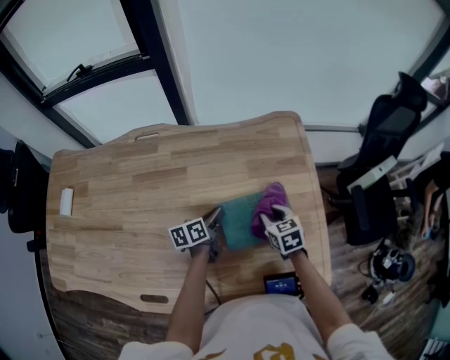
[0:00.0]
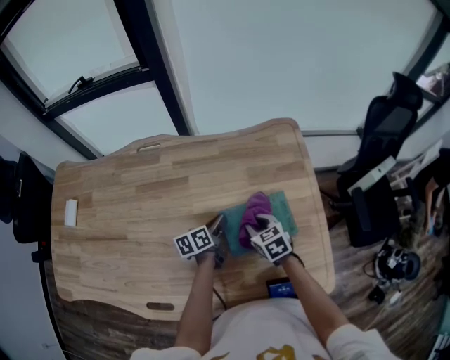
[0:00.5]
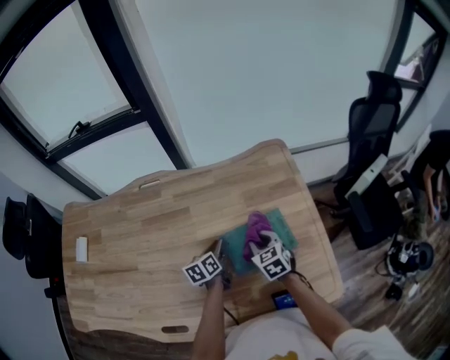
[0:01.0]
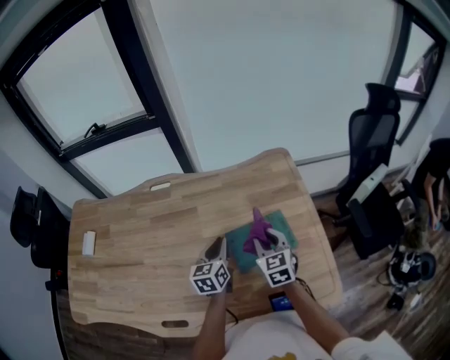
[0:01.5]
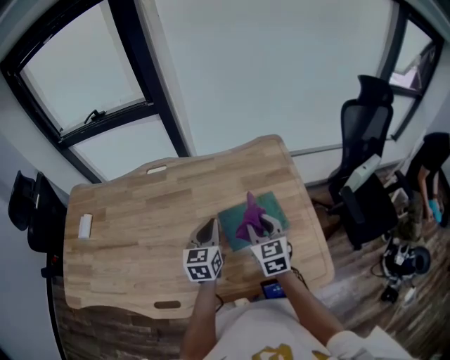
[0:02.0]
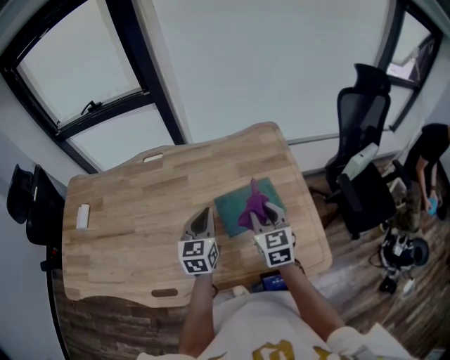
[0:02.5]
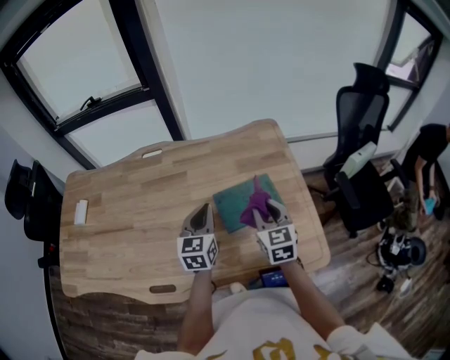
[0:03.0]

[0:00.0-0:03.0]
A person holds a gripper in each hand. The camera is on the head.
0:00.0 to 0:01.5: The grippers both shift upward by about 10 cm. The right gripper rotates approximately 20 degrees. The left gripper turns by some 40 degrees.
0:01.5 to 0:03.0: The right gripper heads backward and upward, covering approximately 10 cm, while the left gripper moves upward and backward, roughly 10 cm.

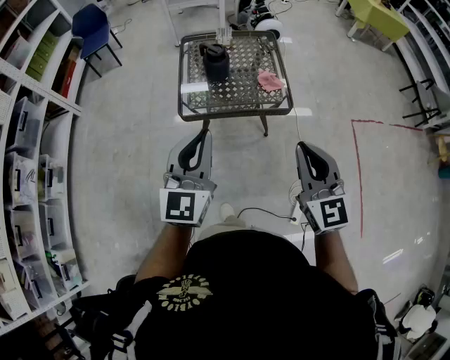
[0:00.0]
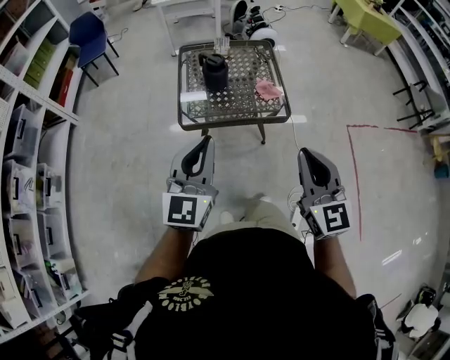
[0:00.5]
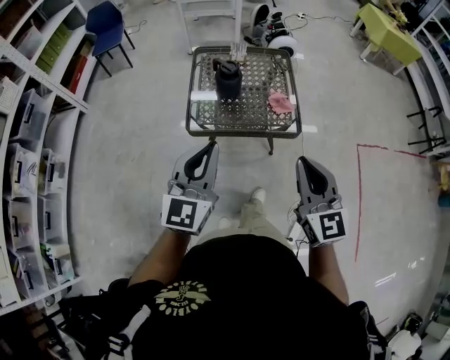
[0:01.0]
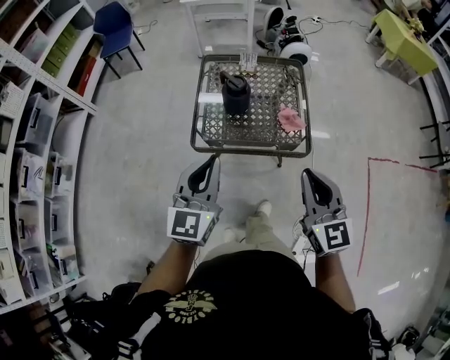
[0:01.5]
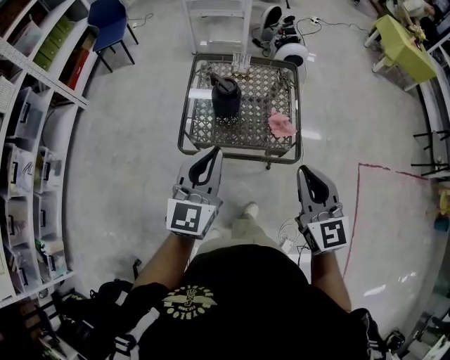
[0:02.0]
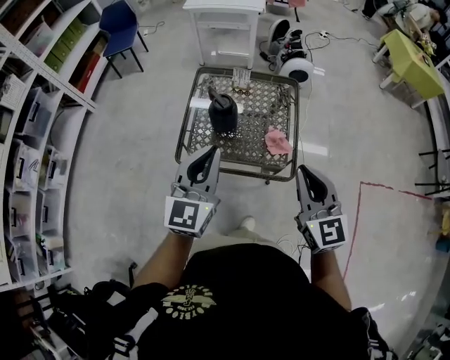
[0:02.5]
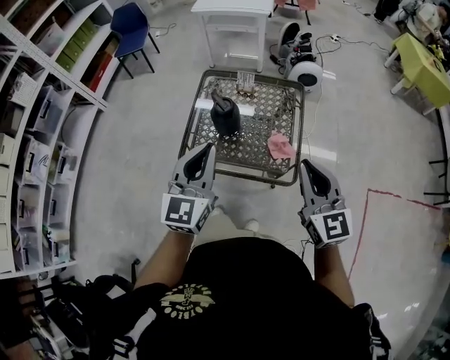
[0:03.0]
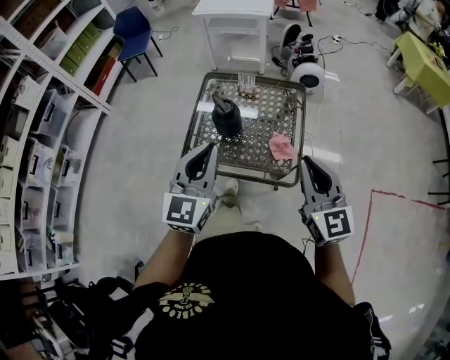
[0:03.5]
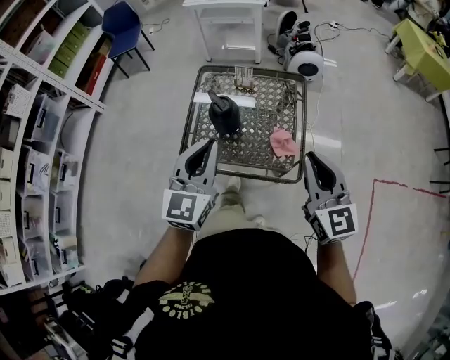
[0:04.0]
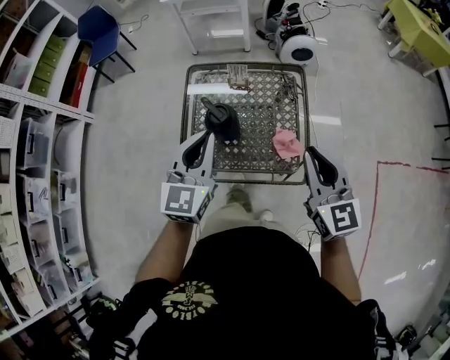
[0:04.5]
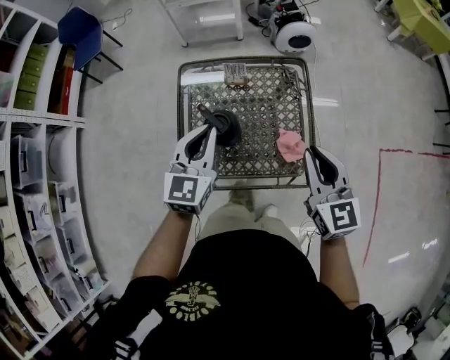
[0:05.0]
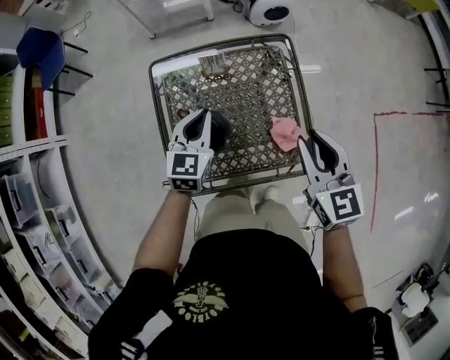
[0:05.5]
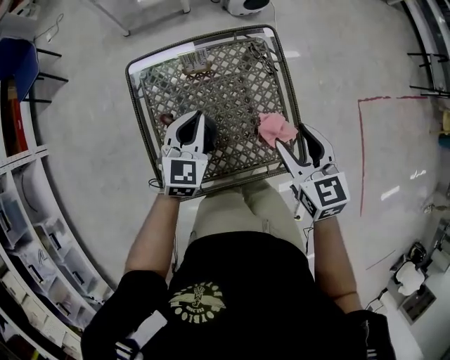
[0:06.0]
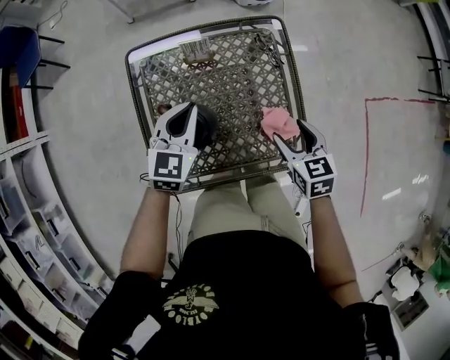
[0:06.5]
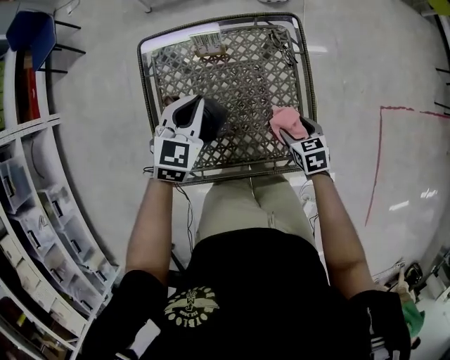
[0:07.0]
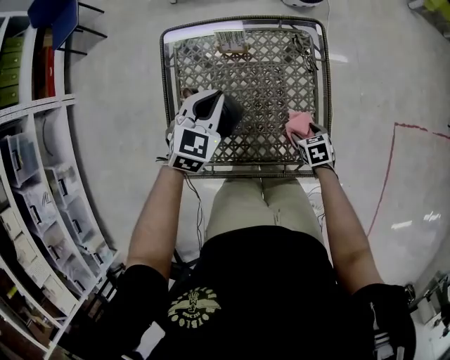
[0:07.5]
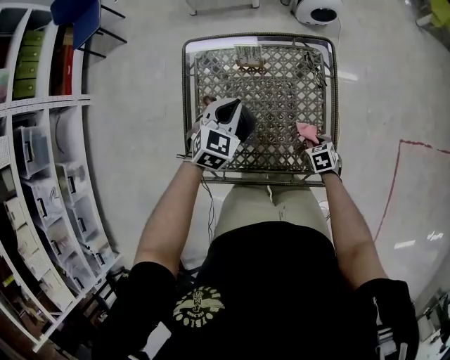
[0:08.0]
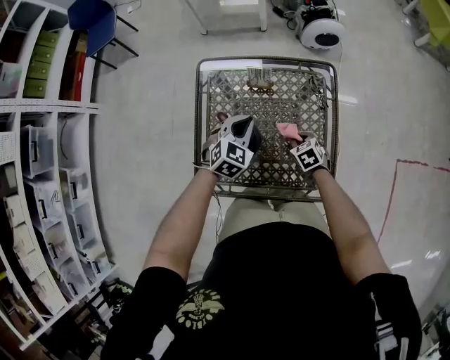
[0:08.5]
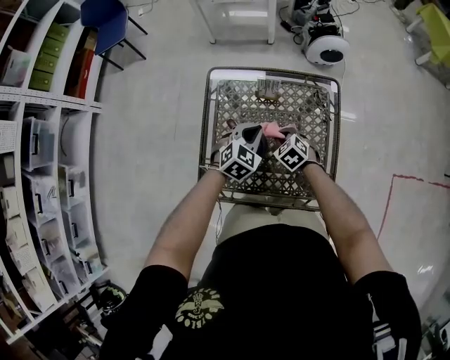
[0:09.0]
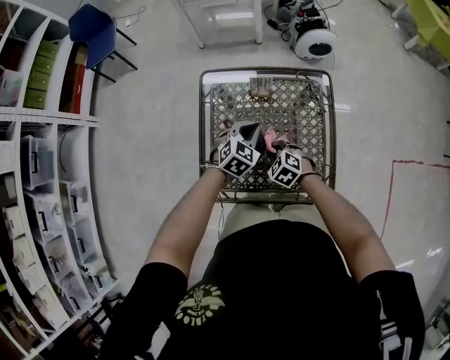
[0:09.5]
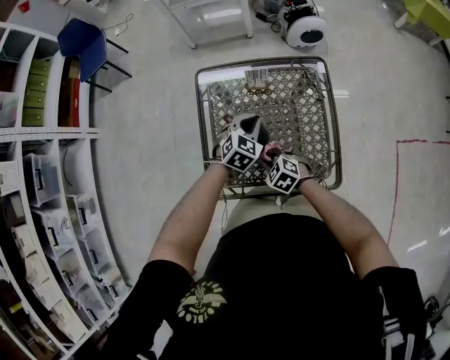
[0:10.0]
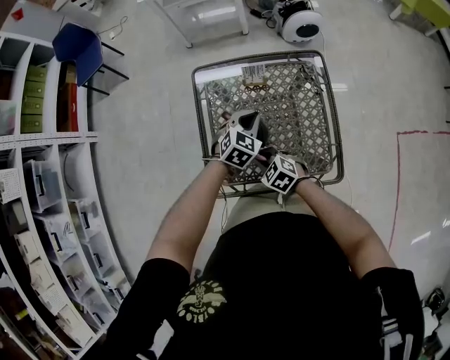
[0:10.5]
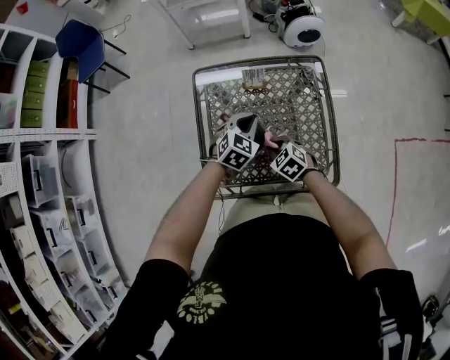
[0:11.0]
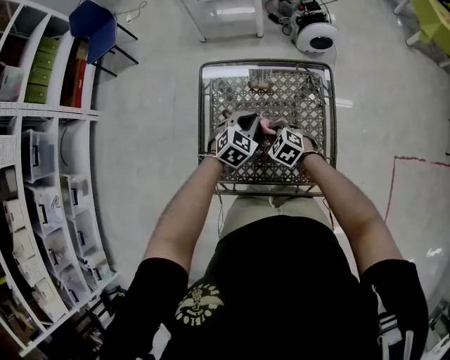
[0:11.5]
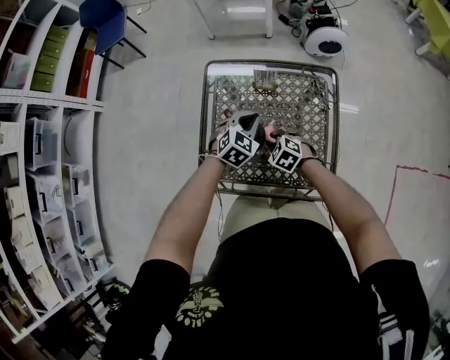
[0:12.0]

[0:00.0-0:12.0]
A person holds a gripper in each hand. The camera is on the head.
0:00.0 to 0:02.0: The grippers both shift forward by roughly 20 cm.
0:02.0 to 0:04.0: Both grippers travel together forward and to the right, approximately 15 cm.
0:04.0 to 0:06.0: Both grippers travel together forward and downward, some 35 cm. The left gripper turns by some 30 degrees, while the right gripper points its fingers about 30 degrees further downward, and opens its fingers.
0:06.0 to 0:08.0: The right gripper moves downward, roughly 30 cm, angles its fingers downward, by roughly 30 degrees, and closes its fingers.
0:08.0 to 0:10.0: The right gripper travels to the left and upward by approximately 30 cm, and turns by approximately 40 degrees.
0:10.0 to 0:12.0: The right gripper shifts about 5 cm forward.

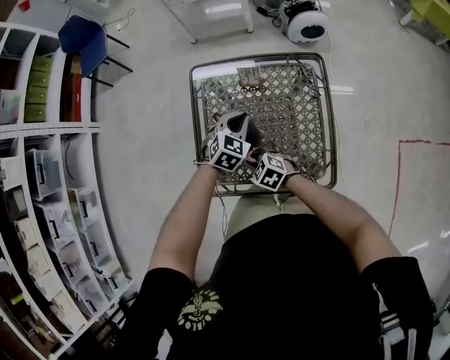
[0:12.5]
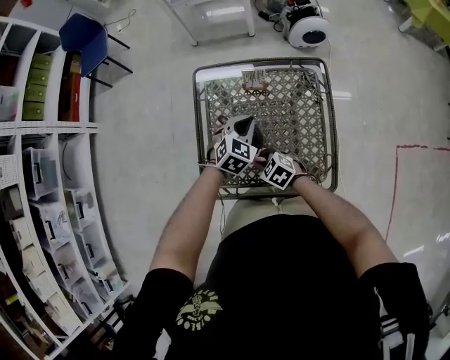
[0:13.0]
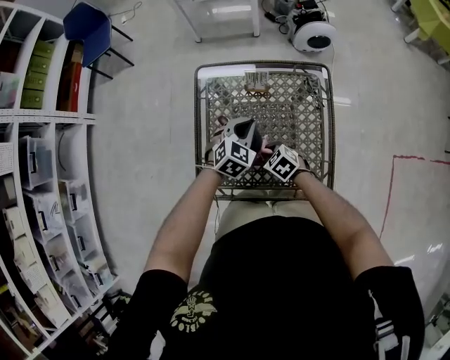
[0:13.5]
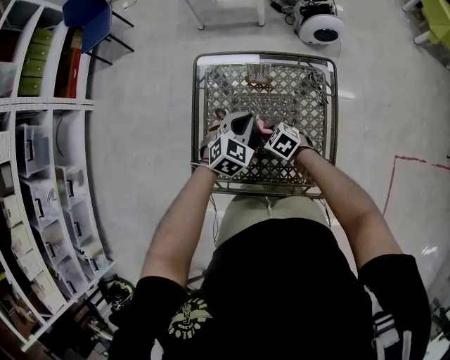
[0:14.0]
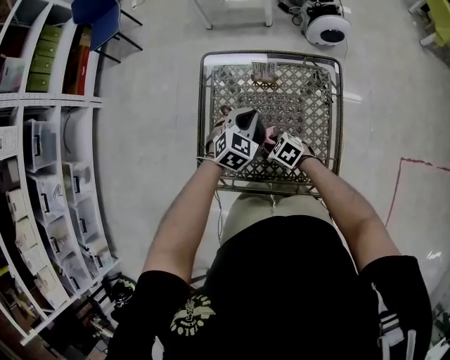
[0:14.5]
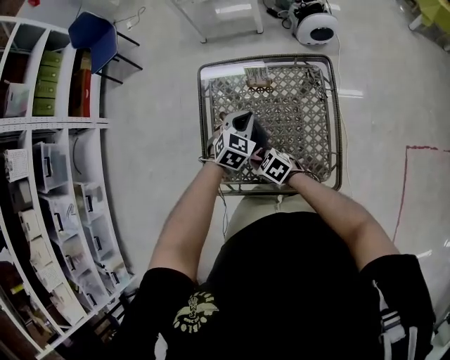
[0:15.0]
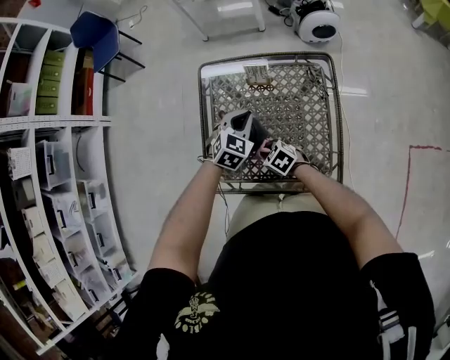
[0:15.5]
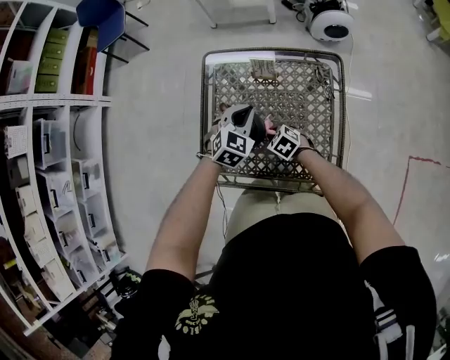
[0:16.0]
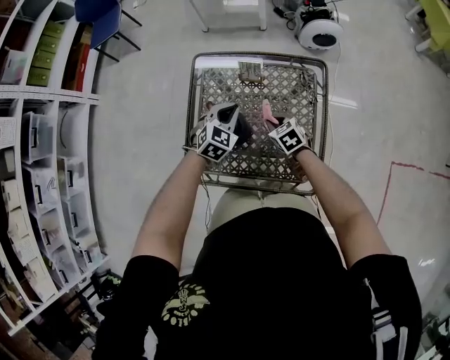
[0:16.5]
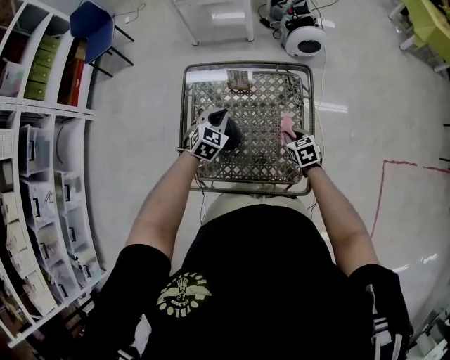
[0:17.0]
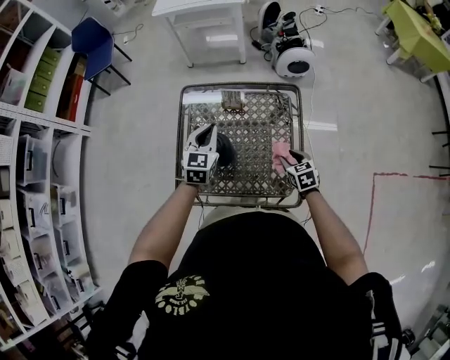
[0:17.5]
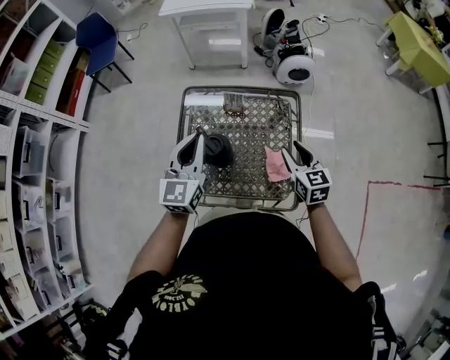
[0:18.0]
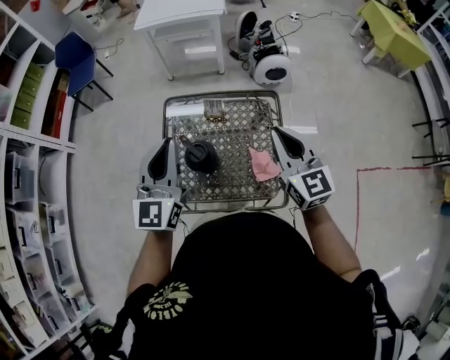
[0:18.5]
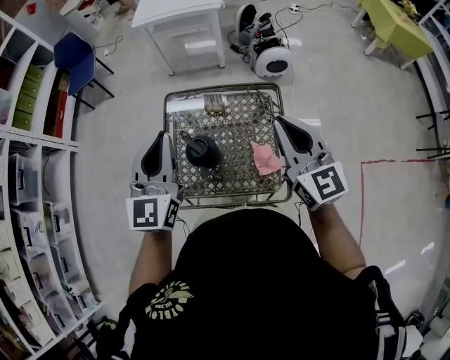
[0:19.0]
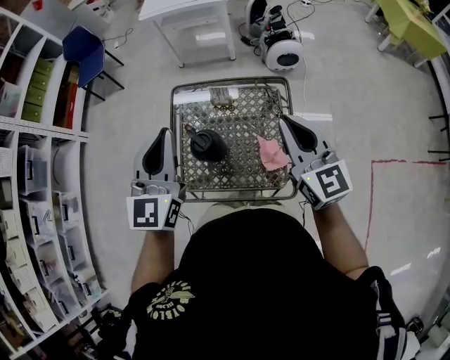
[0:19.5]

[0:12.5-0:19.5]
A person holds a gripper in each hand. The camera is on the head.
0:12.5 to 0:14.5: The right gripper is displaced to the right and downward by about 10 cm.
0:14.5 to 0:16.0: The right gripper moves some 5 cm to the left and comes back.
0:16.0 to 0:17.5: The left gripper travels upward by some 10 cm, and turns by approximately 30 degrees. The right gripper is displaced to the right and upward by about 25 cm, swivels roughly 40 degrees, and opens its fingers.
0:17.5 to 0:19.5: Both grippers move upward, about 30 cm. The left gripper swivels roughly 20 degrees, while the right gripper tilts its fingers about 40 degrees upward, and closes.

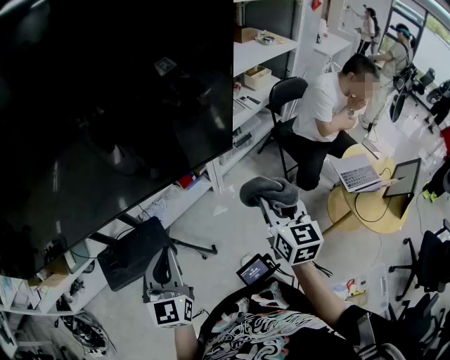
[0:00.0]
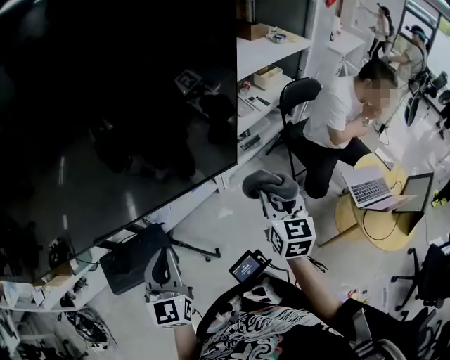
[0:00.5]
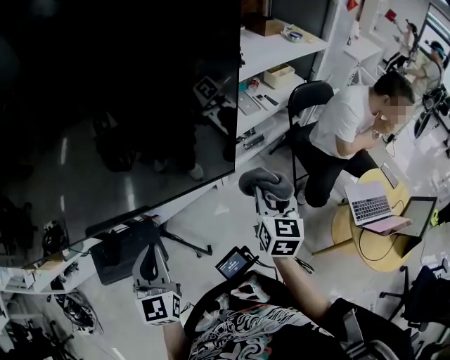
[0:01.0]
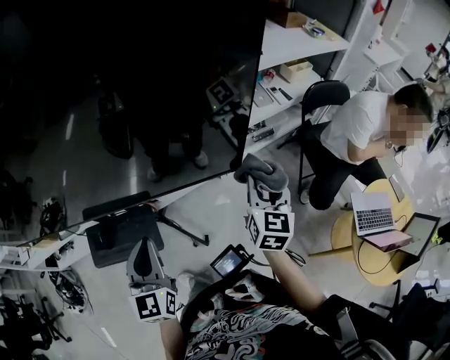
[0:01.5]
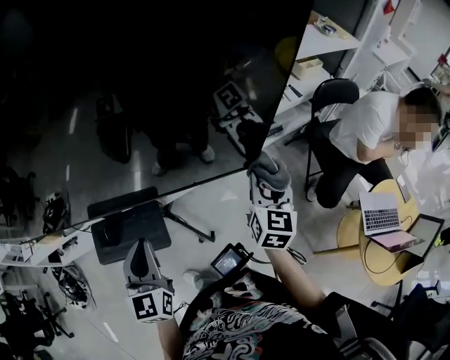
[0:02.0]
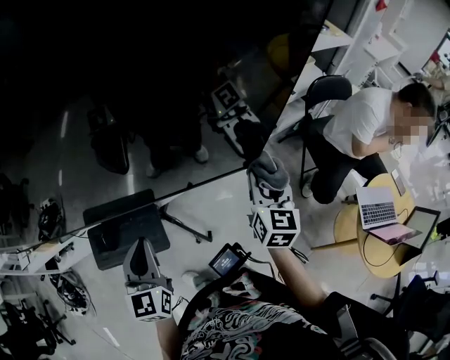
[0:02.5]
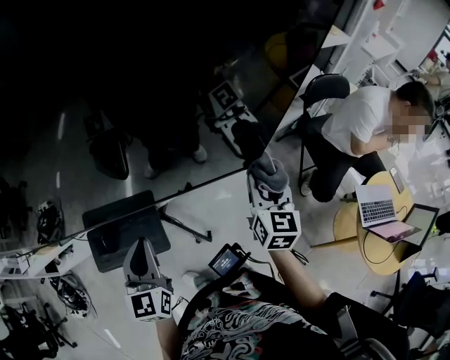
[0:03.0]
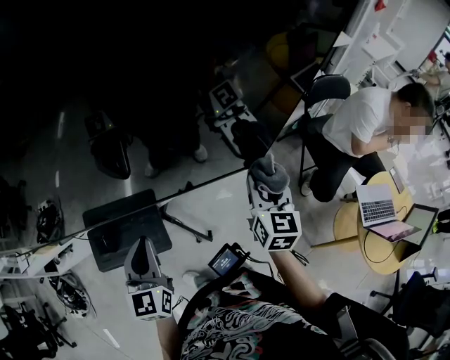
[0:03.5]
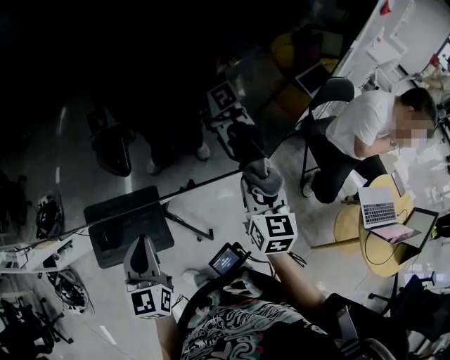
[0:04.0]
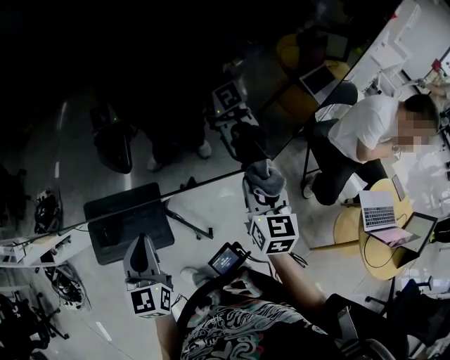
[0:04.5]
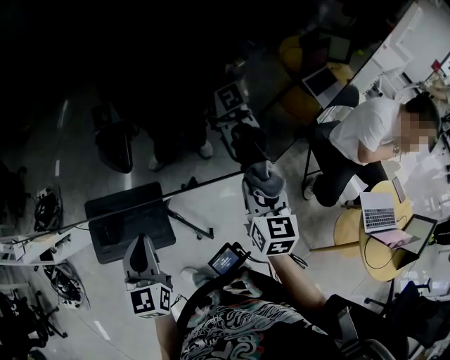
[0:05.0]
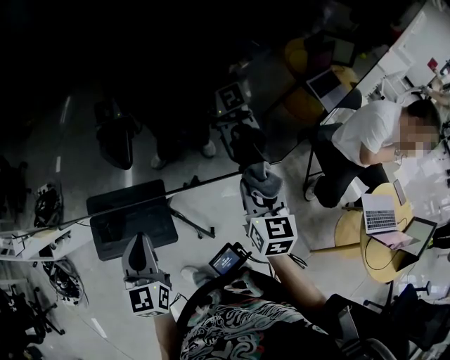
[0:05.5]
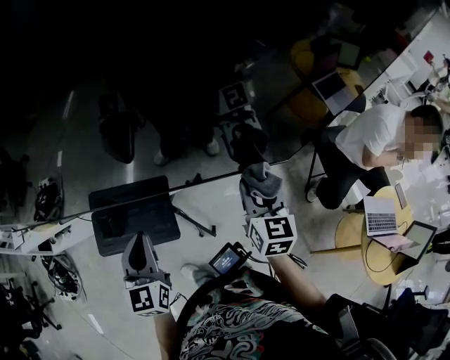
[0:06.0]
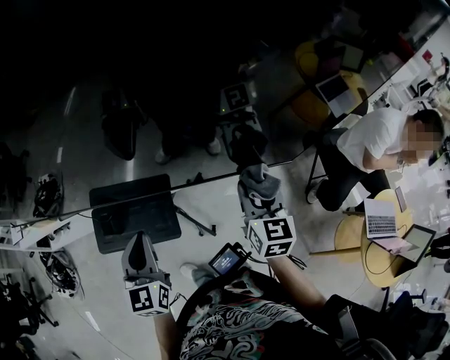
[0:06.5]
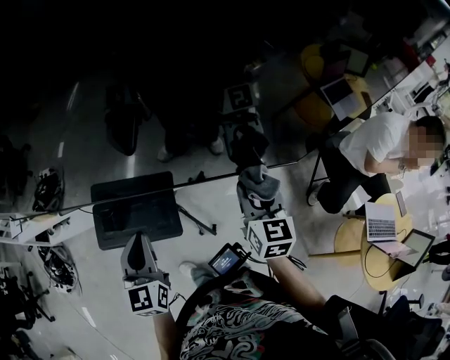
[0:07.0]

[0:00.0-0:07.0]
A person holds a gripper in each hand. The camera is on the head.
0:00.0 to 0:02.0: The left gripper moves forward, approximately 10 cm, and changes its angle by roughly 20 degrees, while the right gripper goes some 20 cm forward.
0:02.0 to 0:03.5: The grippers move only a little.
0:03.5 to 0:05.0: There are only small adjustments of the grippers.
0:05.0 to 0:07.0: The grippers both shift to the left by approximately 10 cm.
